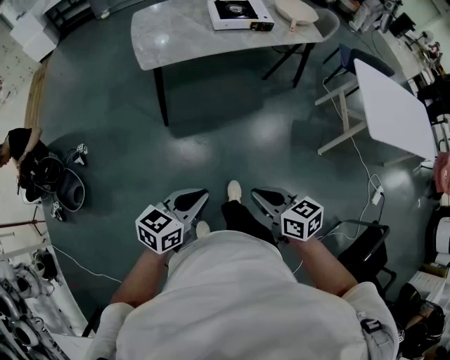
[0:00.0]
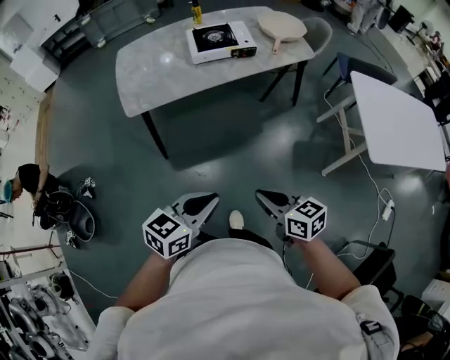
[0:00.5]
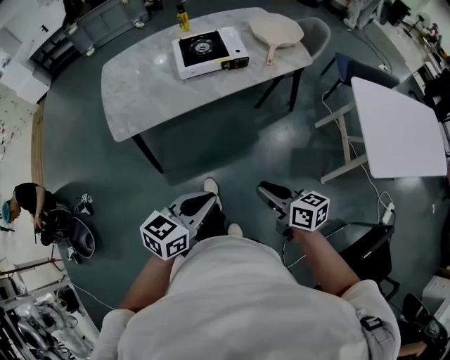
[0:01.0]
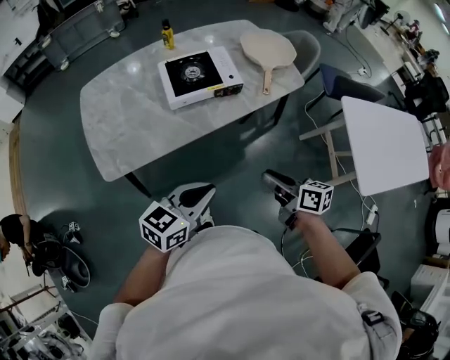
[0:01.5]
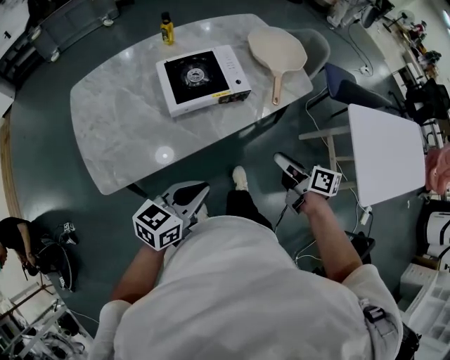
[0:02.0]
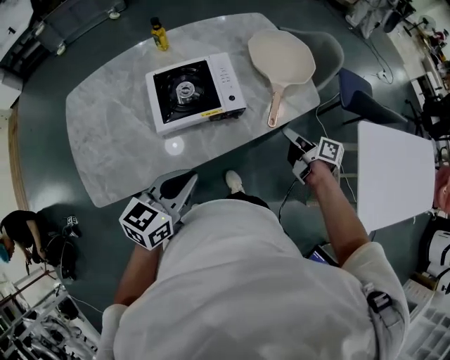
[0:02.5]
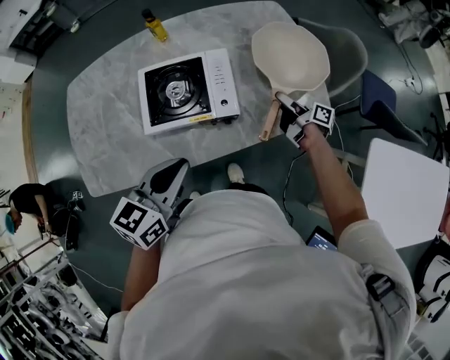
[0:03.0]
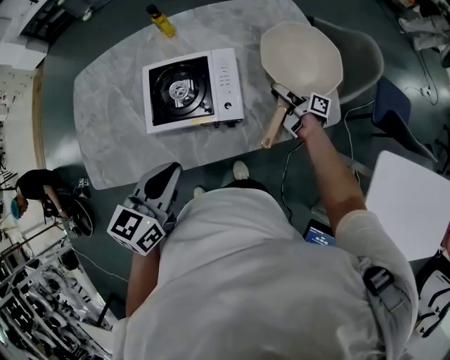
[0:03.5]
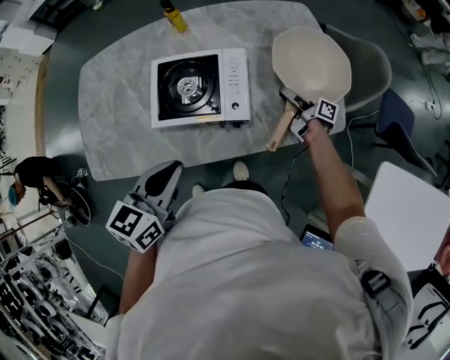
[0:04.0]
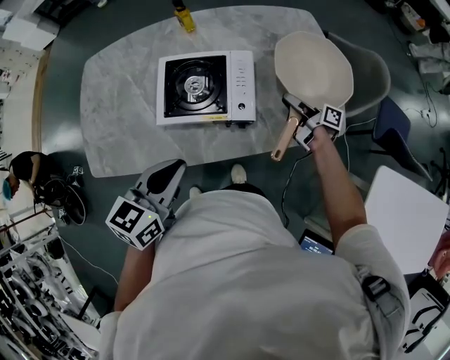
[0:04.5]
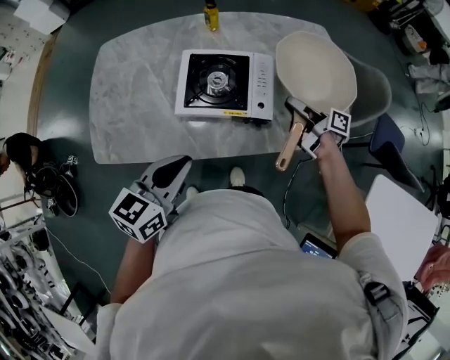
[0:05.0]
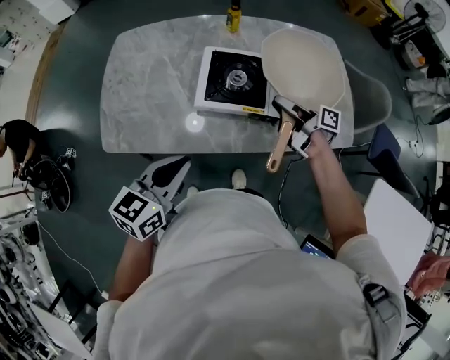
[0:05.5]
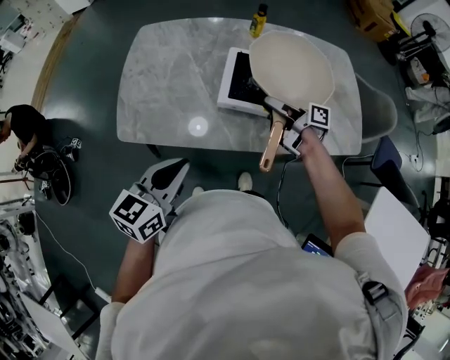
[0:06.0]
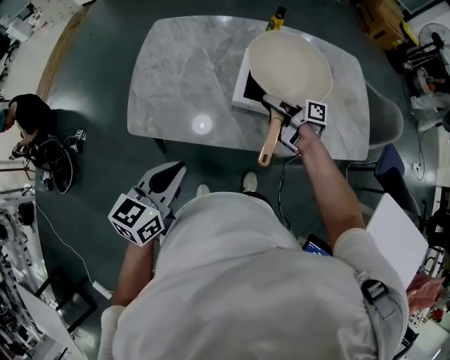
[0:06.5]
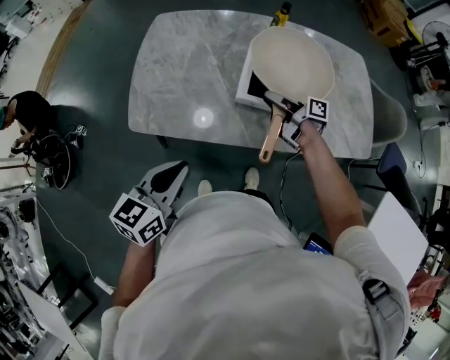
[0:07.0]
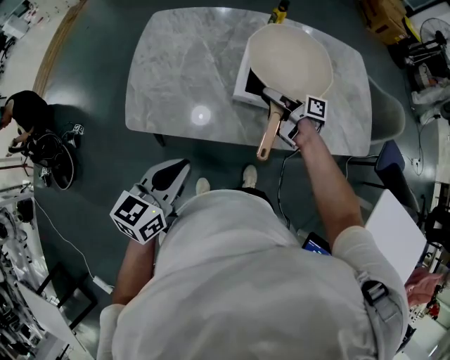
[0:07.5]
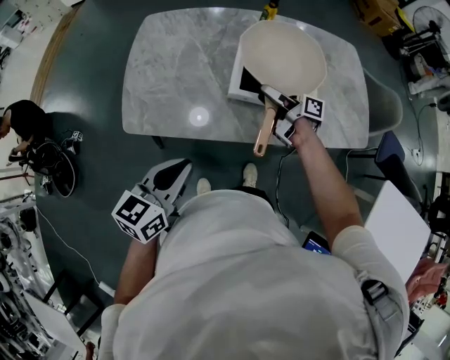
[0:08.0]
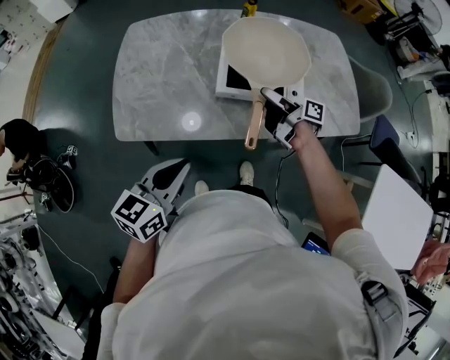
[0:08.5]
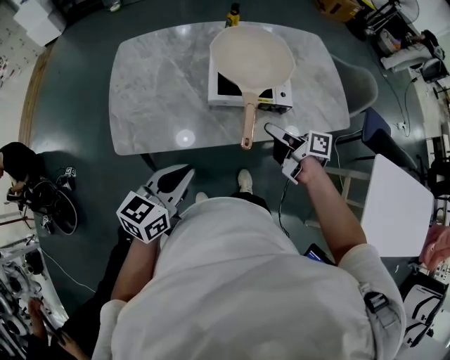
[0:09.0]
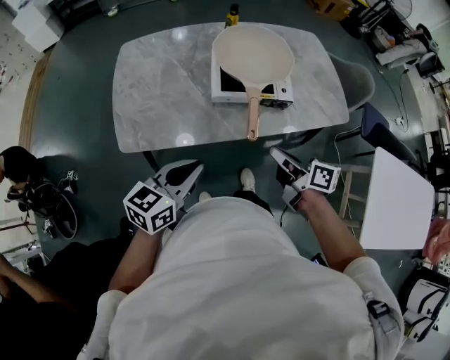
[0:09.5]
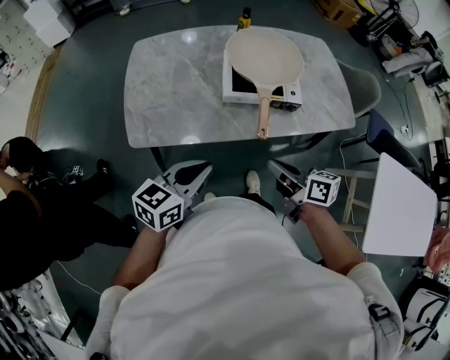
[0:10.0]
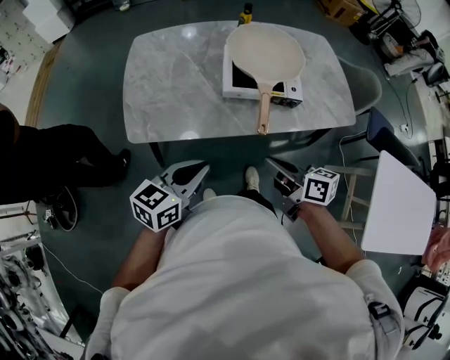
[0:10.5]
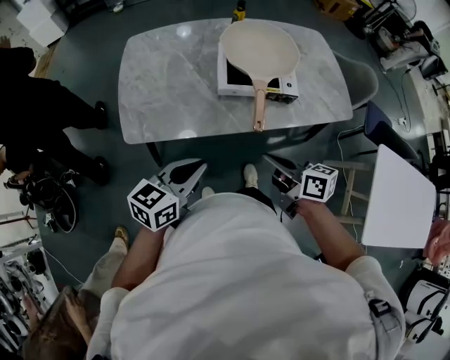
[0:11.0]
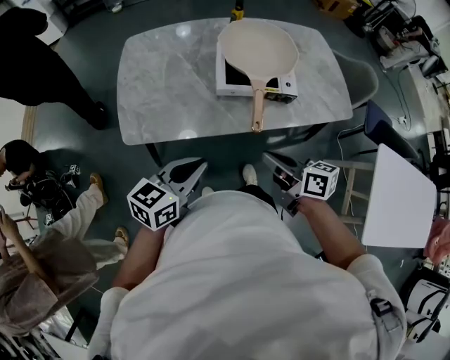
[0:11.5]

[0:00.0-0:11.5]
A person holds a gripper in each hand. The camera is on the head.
0:00.0 to 0:02.0: Both grippers are carried forward, approximately 60 cm. The right gripper turns by some 30 degrees, and opens up.
0:02.0 to 0:04.0: The left gripper moves approximately 20 cm, and rotates approximately 30 degrees, while the right gripper changes place by some 40 cm, swivels approximately 30 degrees, and opens and closes again.
0:04.0 to 0:06.0: The right gripper travels to the left and upward by approximately 35 cm, and changes its angle by approximately 20 degrees. The left gripper shifts approximately 20 cm to the left and backward.
0:06.0 to 0:07.5: There are only small adjustments of the grippers.
0:07.5 to 0:09.5: The right gripper heads backward, covering approximately 25 cm, rotates roughly 30 degrees, and closes its fingers.
0:09.5 to 0:11.5: The right gripper shifts by roughly 5 cm.

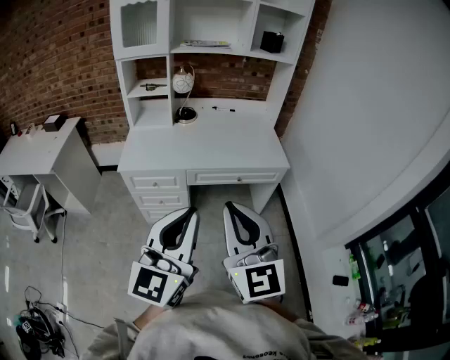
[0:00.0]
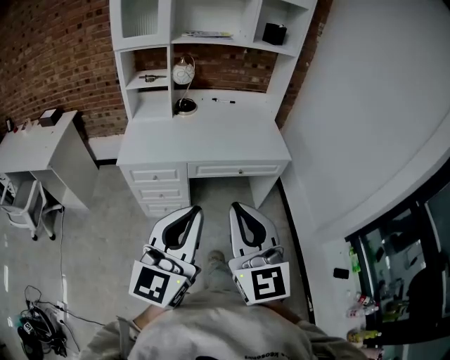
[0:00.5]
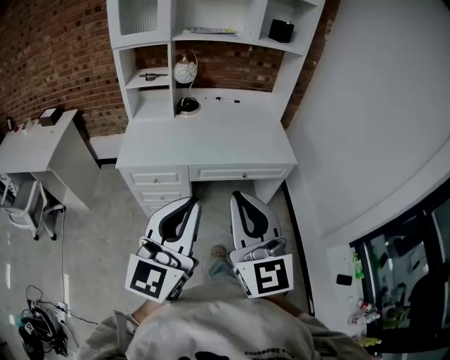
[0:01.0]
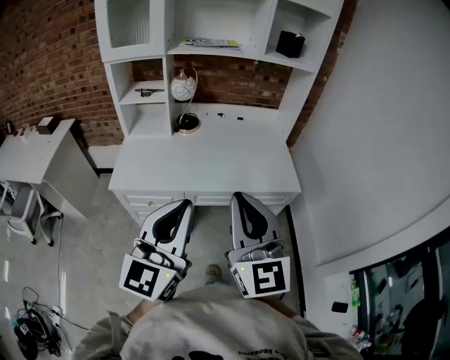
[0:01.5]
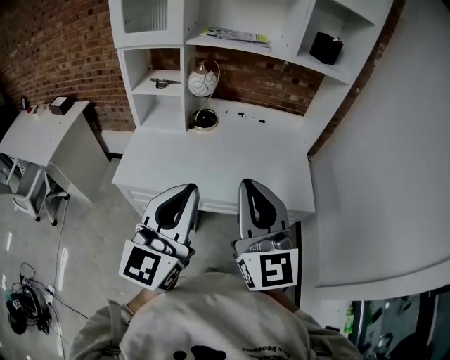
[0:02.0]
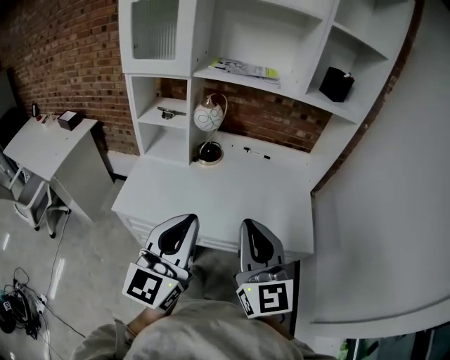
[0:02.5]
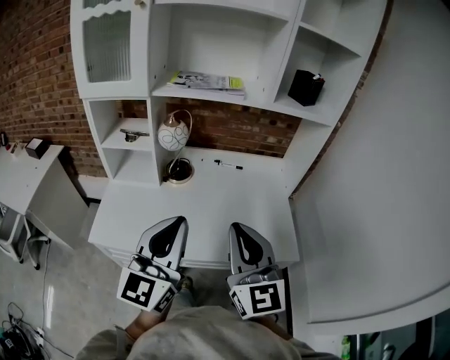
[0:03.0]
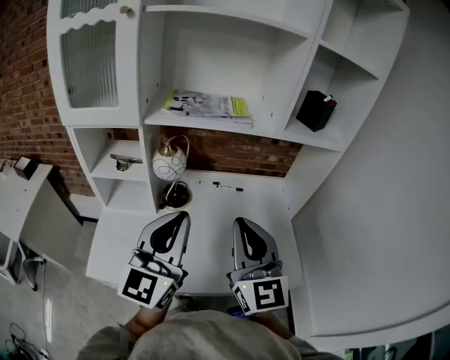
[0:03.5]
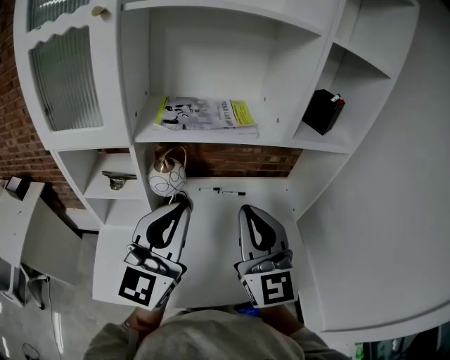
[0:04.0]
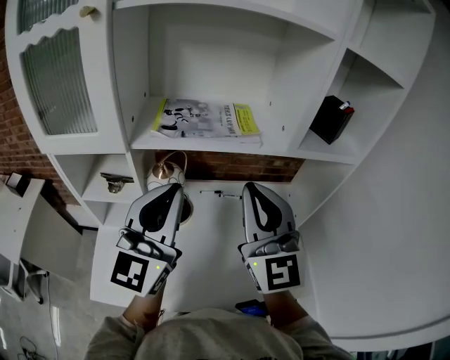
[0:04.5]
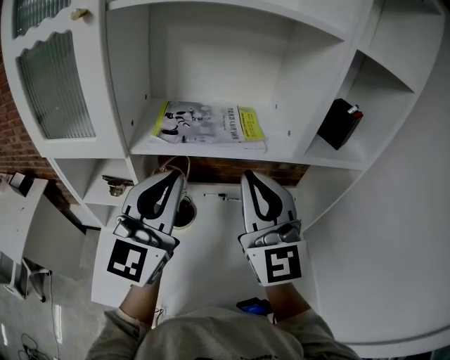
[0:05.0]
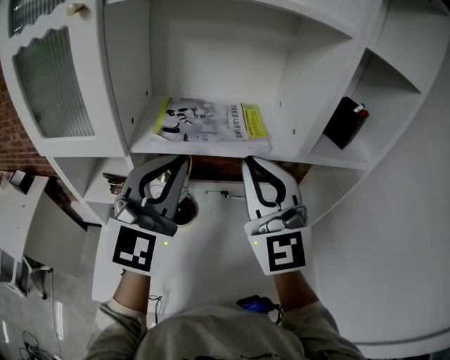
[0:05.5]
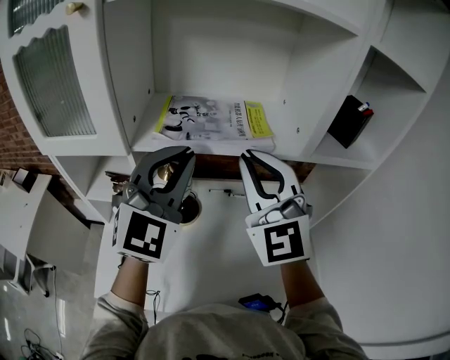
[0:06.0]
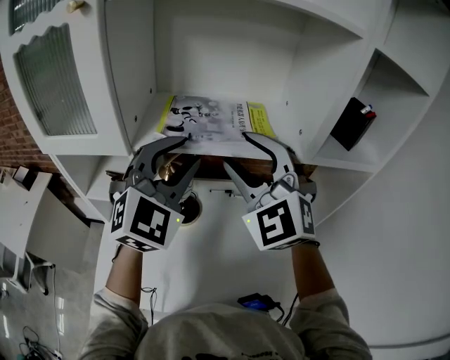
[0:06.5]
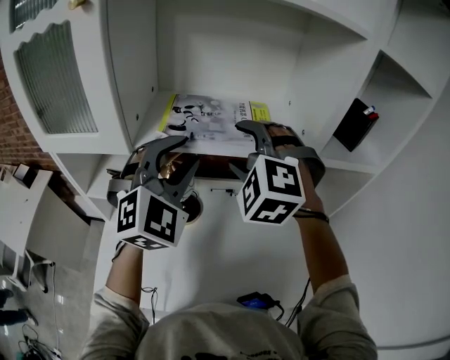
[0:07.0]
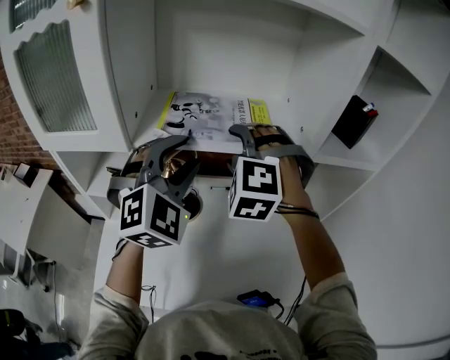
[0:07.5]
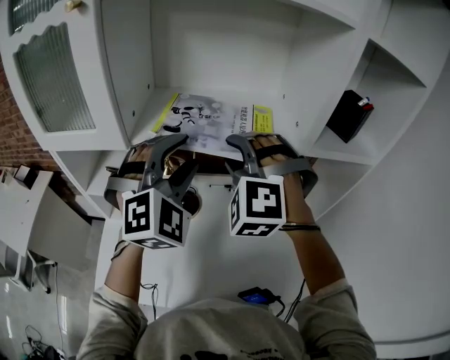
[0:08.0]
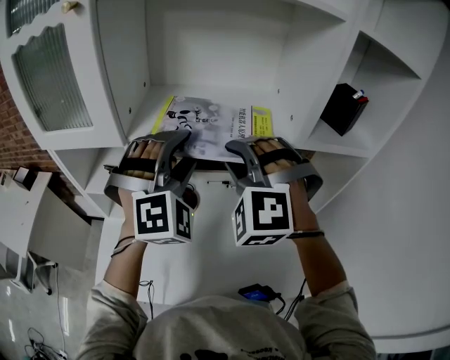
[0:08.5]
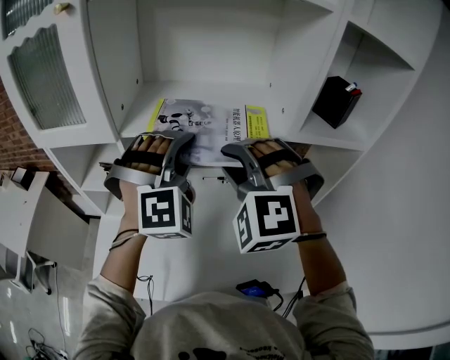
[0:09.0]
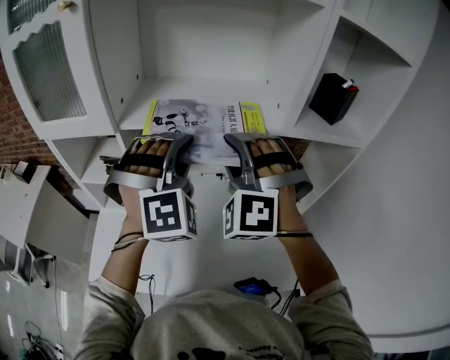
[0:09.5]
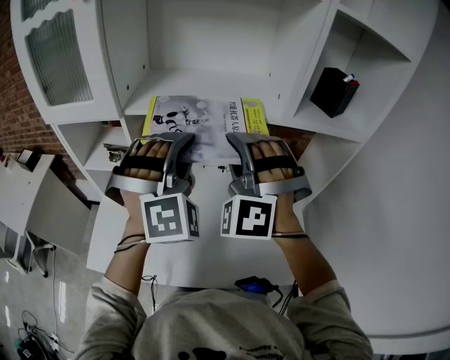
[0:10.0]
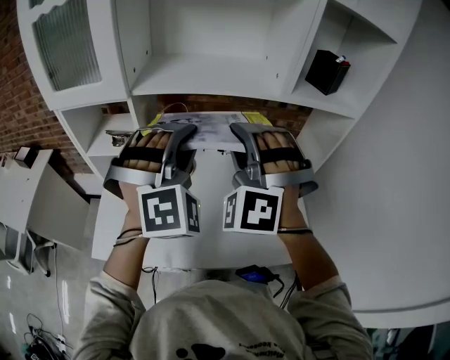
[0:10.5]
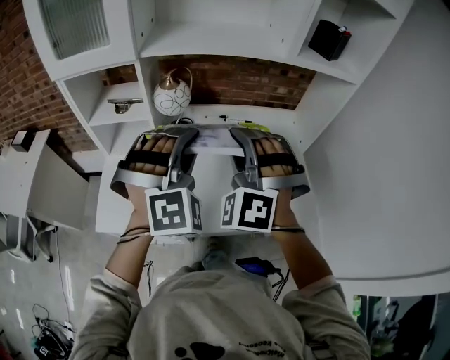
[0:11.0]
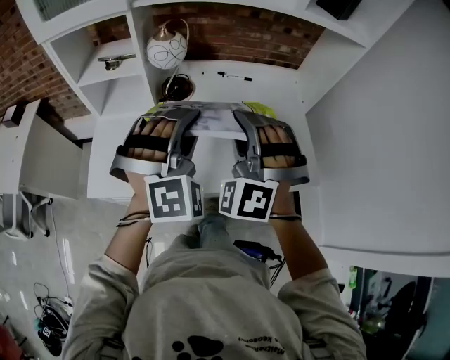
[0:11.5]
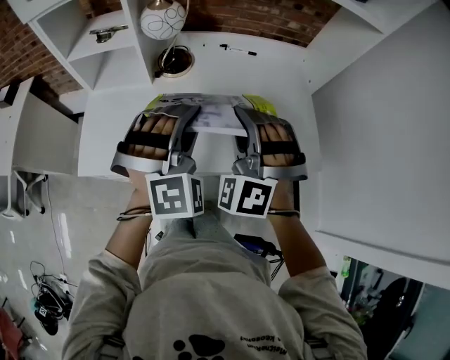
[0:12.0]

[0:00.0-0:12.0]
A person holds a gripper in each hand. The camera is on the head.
0:00.0 to 0:02.0: Both grippers move forward, some 30 cm.
0:02.0 to 0:04.0: The grippers both shift forward by some 35 cm.
0:04.0 to 0:06.0: The grippers both shift forward by some 15 cm. The right gripper turns by approximately 30 degrees; the left gripper swivels roughly 40 degrees.
0:06.0 to 0:08.0: The right gripper travels downward and forward by roughly 10 cm, points its fingers some 30 degrees further downward, and opens up, while the left gripper shifts by about 5 cm, rotates roughly 30 degrees, and opens its fingers.
0:08.0 to 0:10.0: The grippers both shift backward by some 5 cm. The left gripper turns by roughly 20 degrees, and closes.
0:10.0 to 0:12.0: Both grippers move downward and backward, some 25 cm.

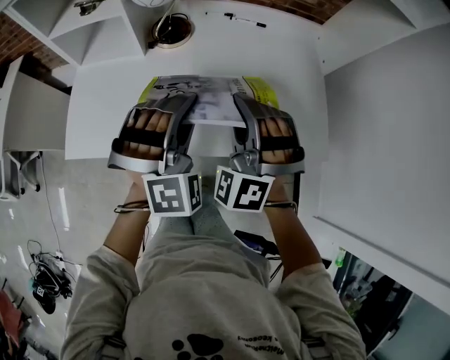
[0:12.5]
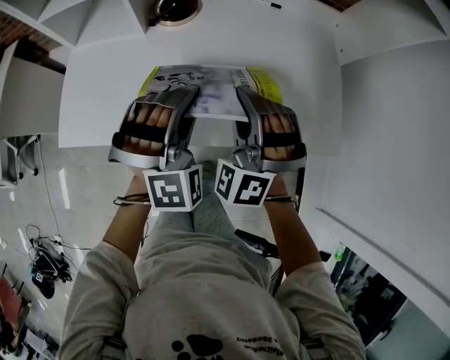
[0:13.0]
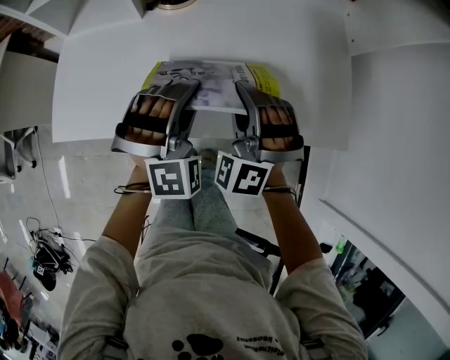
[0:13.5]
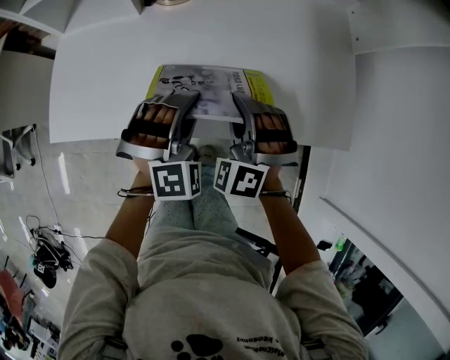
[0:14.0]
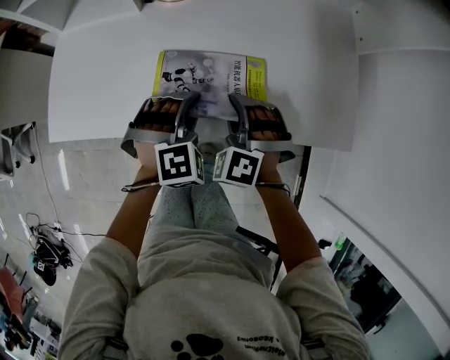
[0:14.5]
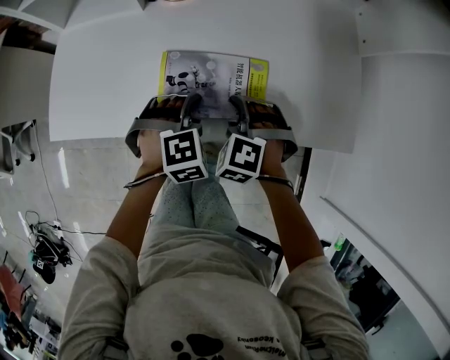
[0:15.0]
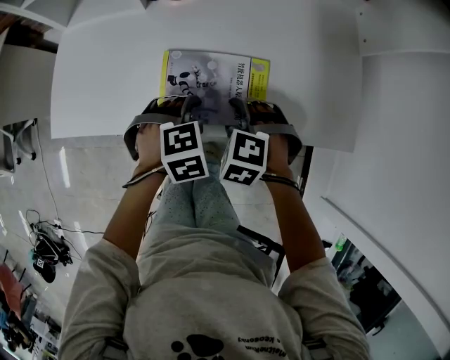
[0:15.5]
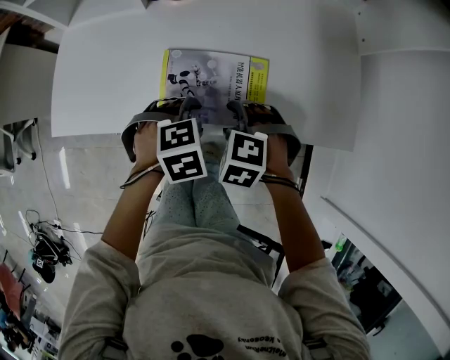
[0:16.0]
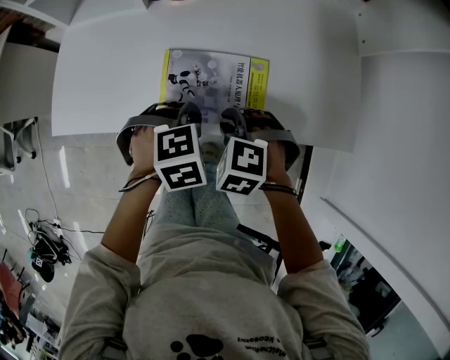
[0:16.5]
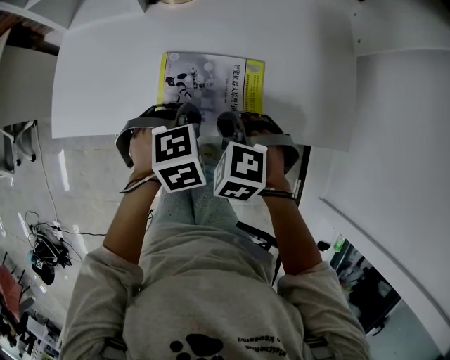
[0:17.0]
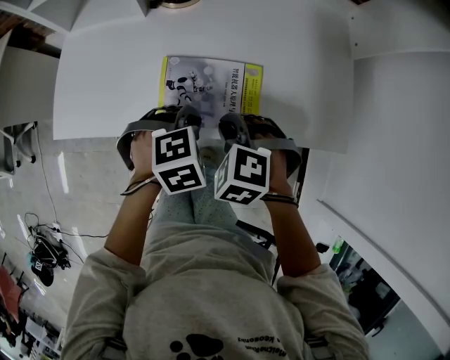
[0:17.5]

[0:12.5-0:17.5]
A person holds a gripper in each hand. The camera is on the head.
0:12.5 to 0:15.0: Both grippers travel together downward, roughly 25 cm. The right gripper points its fingers about 40 degrees further downward. The left gripper tips its fingers downward by roughly 40 degrees.
0:15.0 to 0:17.5: The right gripper travels upward by roughly 5 cm, and opens, then closes once more, while the left gripper shifts by about 5 cm, and closes up.
